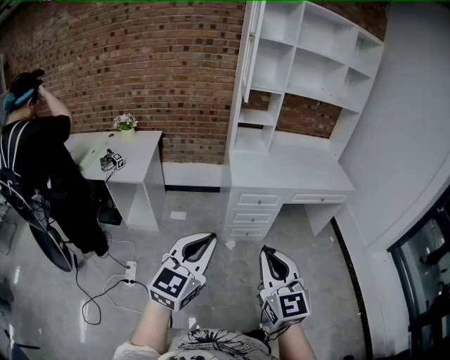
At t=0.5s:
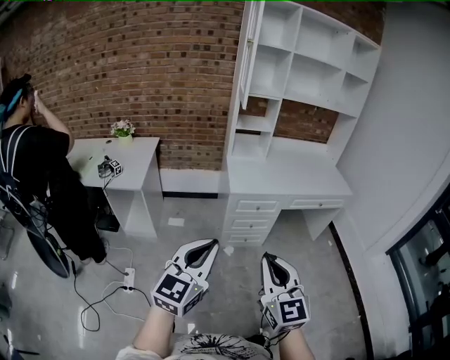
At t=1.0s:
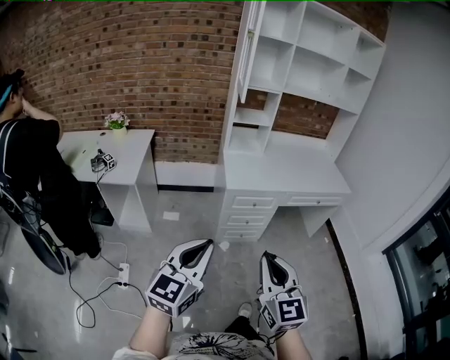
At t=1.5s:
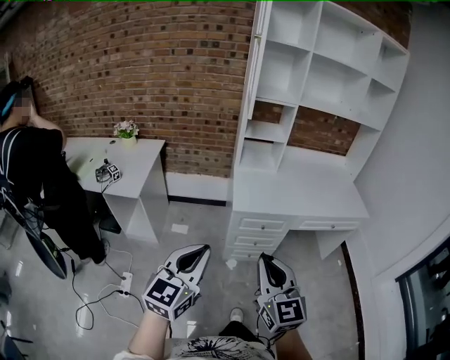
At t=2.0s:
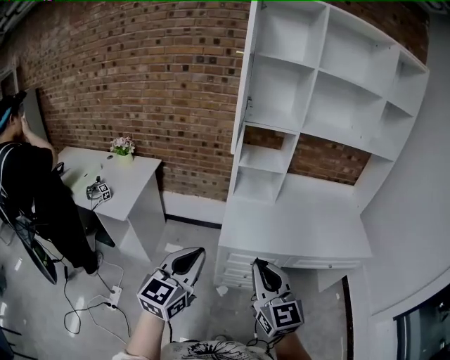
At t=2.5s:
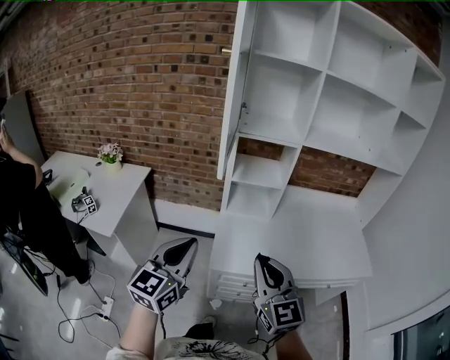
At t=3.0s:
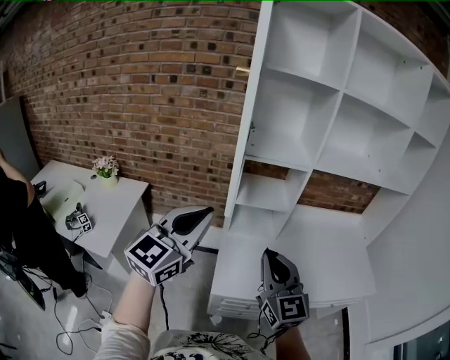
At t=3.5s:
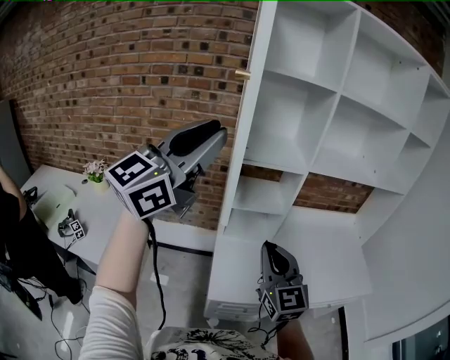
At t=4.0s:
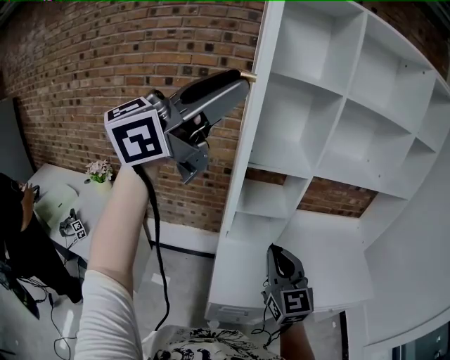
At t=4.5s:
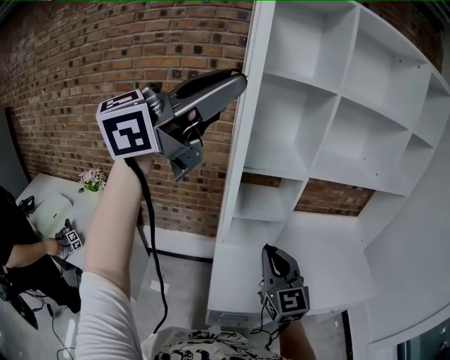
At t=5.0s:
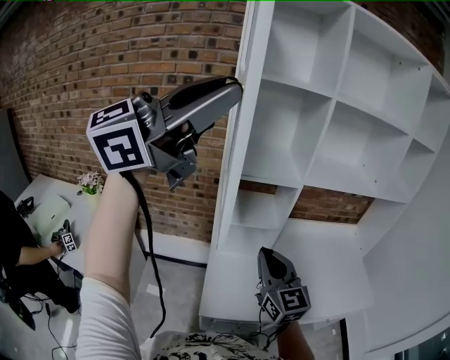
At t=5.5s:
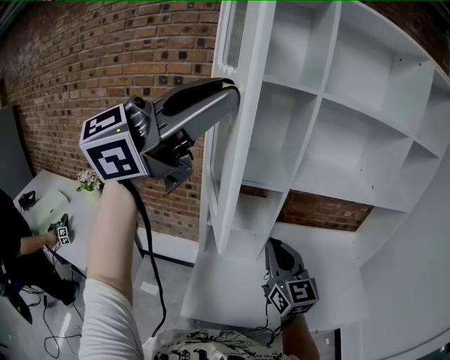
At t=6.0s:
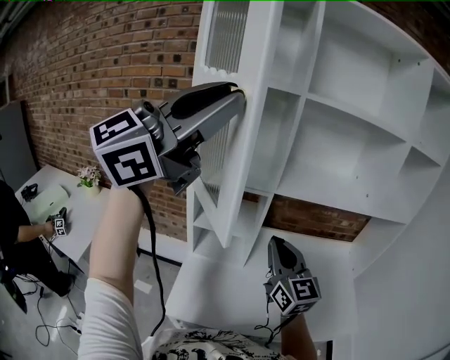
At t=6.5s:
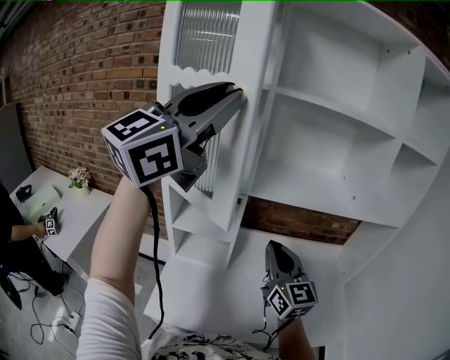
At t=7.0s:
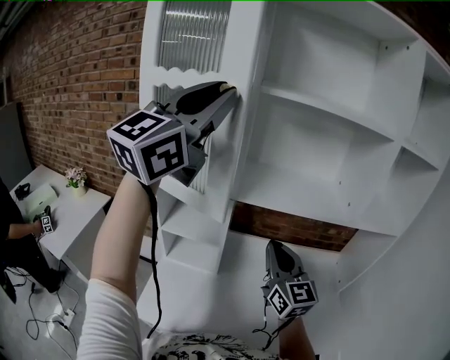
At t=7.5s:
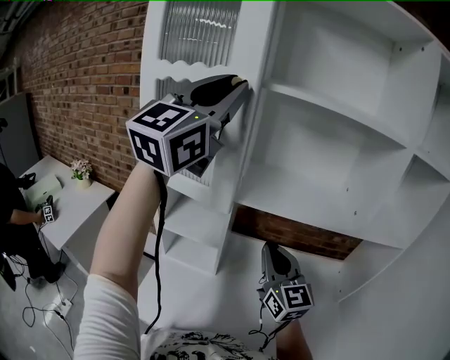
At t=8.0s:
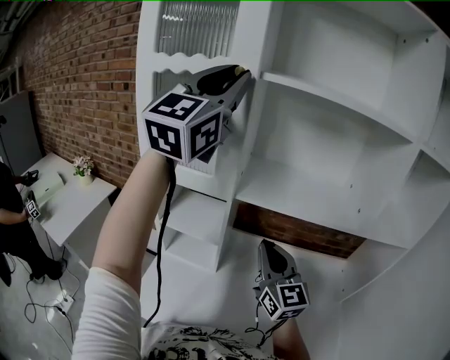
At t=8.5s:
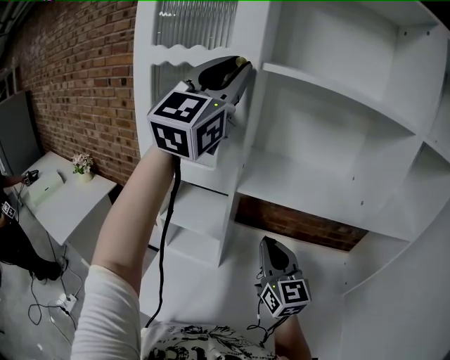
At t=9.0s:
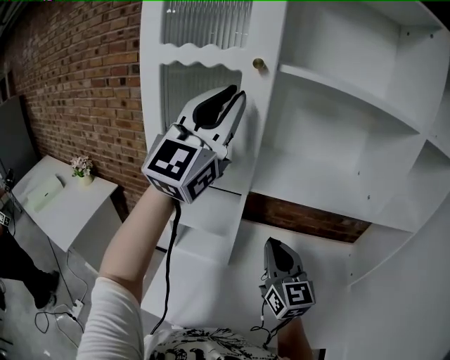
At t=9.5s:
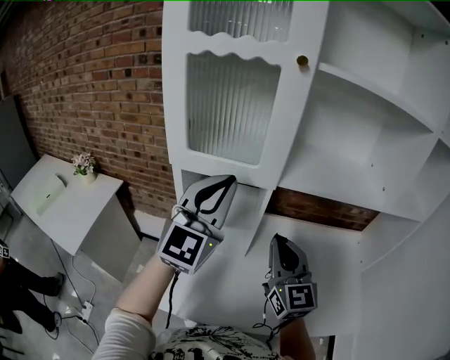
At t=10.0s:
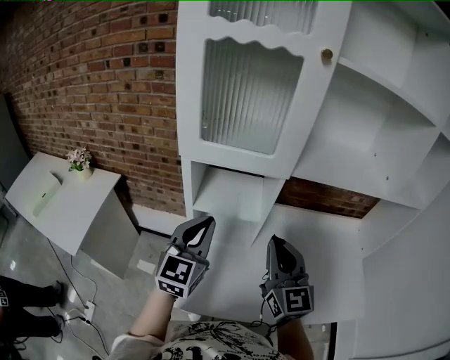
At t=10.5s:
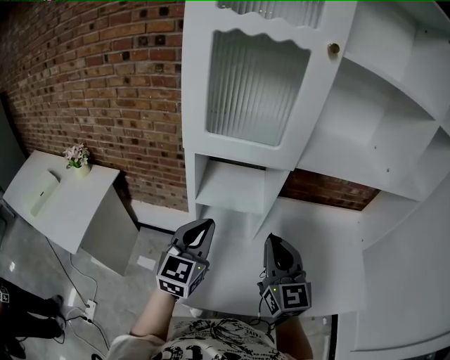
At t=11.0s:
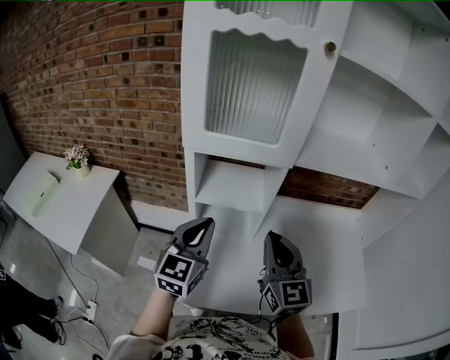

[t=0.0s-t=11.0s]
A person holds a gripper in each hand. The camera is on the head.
t=0.0s to t=2.0s: The grippers both shift forward by about 35 cm.
t=2.0s to t=3.5s: The right gripper is displaced forward by roughly 30 cm. Meanwhile the left gripper goes roughly 50 cm forward and upward, and swivels approximately 30 degrees.
t=3.5s to t=5.5s: The right gripper heads forward and to the right, covering some 15 cm. The left gripper shifts some 15 cm to the right, upward and forward, and rotates roughly 20 degrees.
t=5.5s to t=7.5s: The right gripper shifts by approximately 20 cm. The left gripper ends up roughly 25 cm from where it was, and changes its angle by about 40 degrees.
t=7.5s to t=9.0s: The left gripper goes approximately 5 cm downward.
t=9.0s to t=11.0s: The left gripper travels downward by some 35 cm, and angles its fingers downward, by approximately 40 degrees, while the right gripper moves to the left and backward, approximately 15 cm.

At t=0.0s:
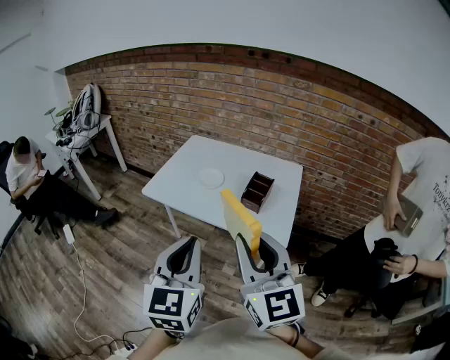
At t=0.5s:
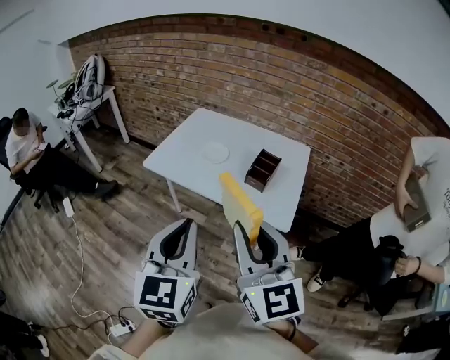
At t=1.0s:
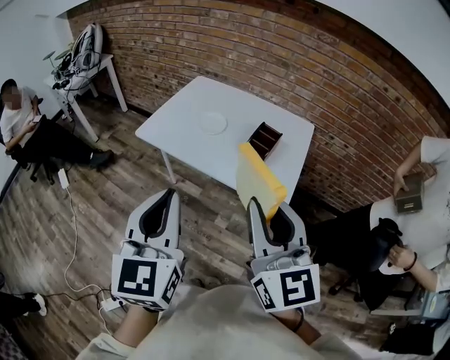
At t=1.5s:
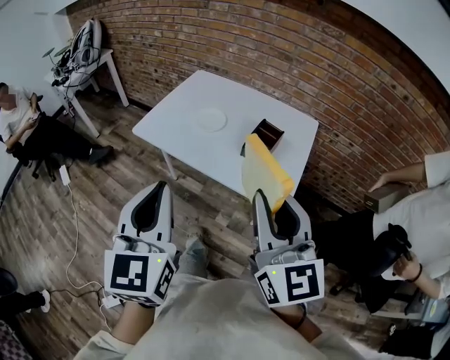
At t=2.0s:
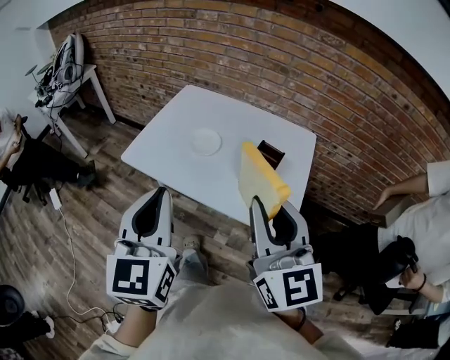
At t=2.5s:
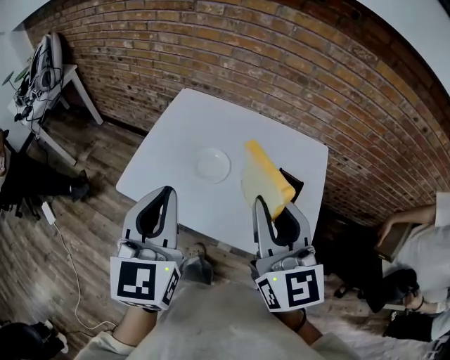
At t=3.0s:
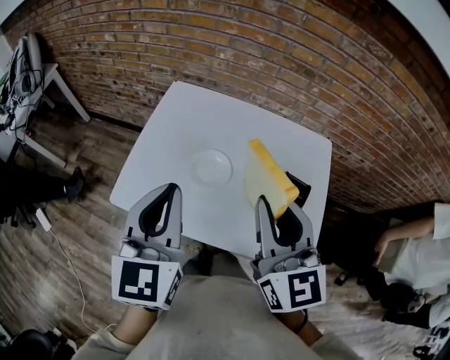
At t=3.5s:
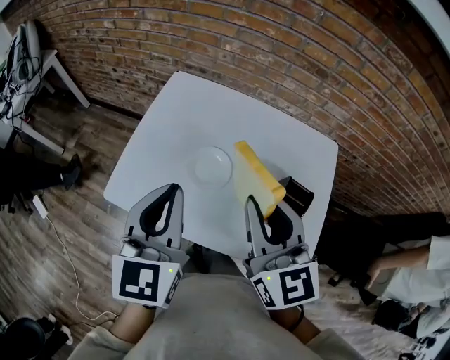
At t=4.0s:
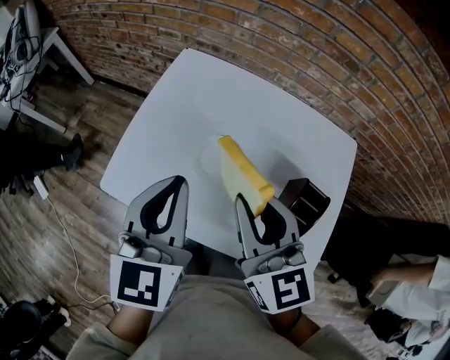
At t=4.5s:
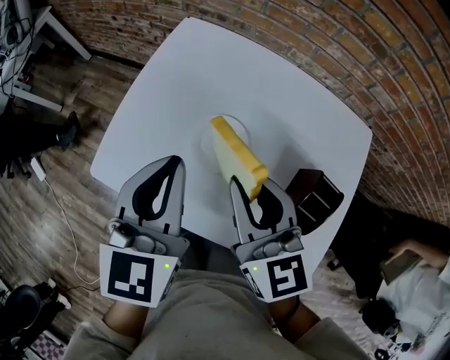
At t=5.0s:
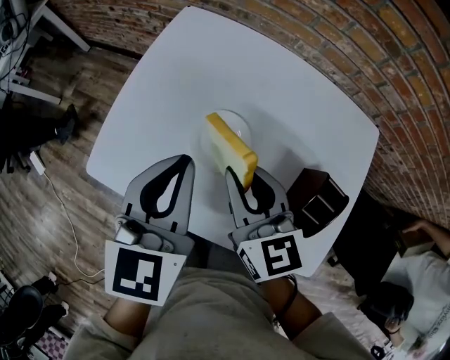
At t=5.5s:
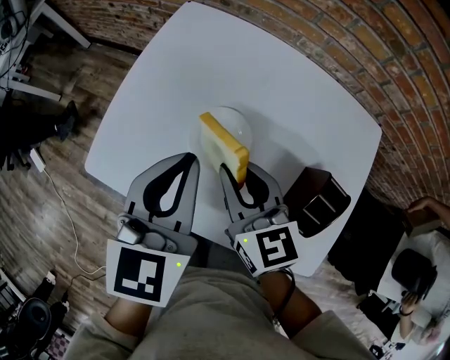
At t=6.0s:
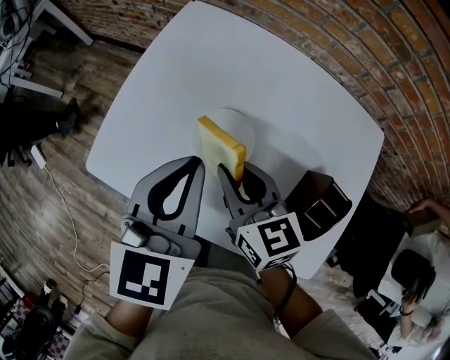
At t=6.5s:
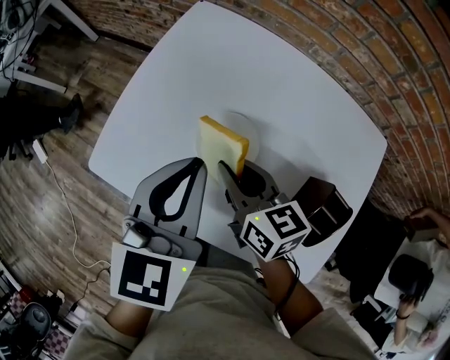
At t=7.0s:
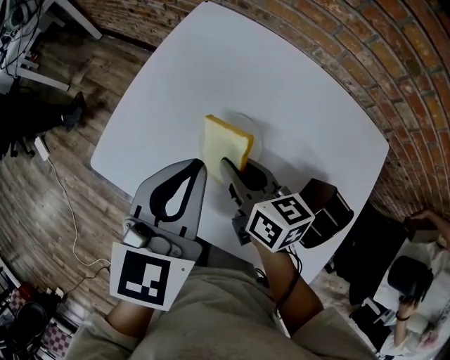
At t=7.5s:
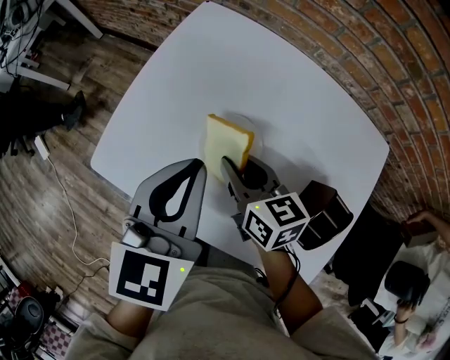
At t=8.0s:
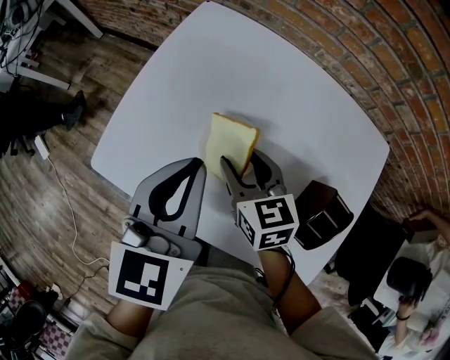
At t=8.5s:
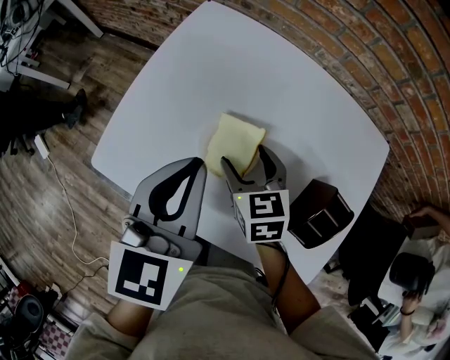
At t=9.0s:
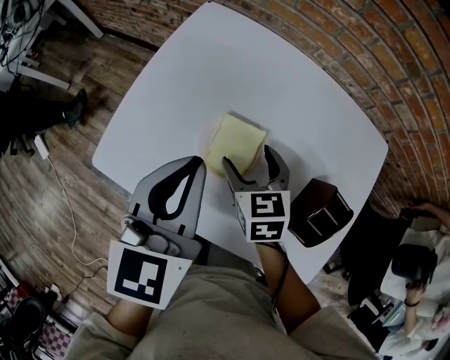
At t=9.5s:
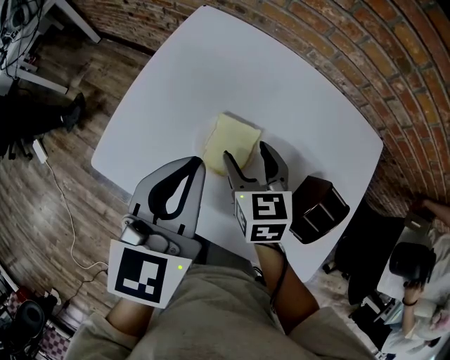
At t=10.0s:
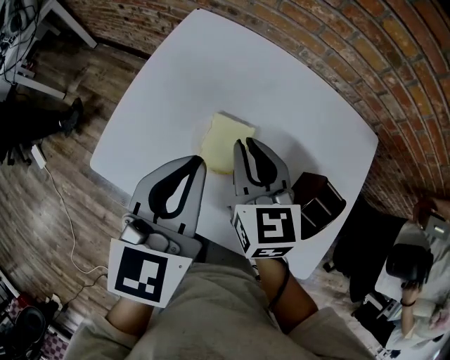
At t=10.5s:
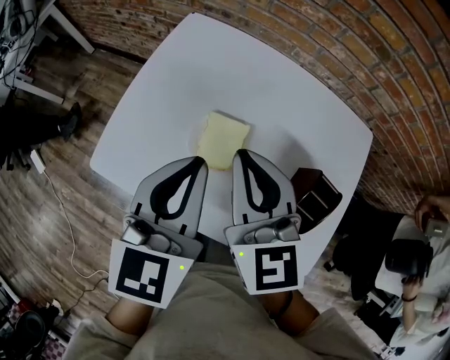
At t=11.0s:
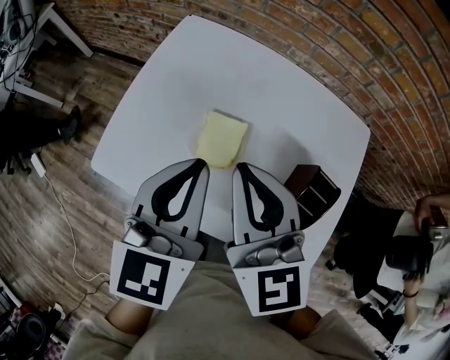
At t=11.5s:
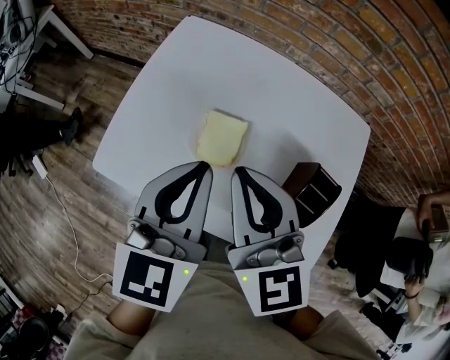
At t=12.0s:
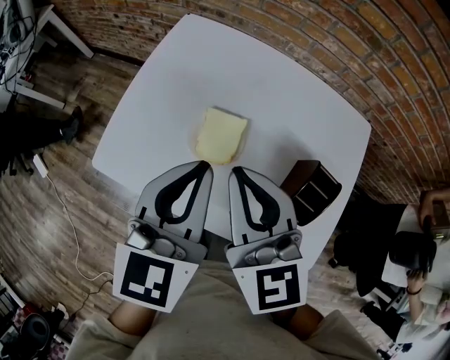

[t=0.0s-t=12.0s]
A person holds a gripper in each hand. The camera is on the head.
t=0.0s to t=2.0s: Both grippers travel together forward, roughly 15 cm.
t=2.0s to t=4.0s: Both grippers travel together forward, approximately 30 cm.
t=4.0s to t=6.0s: The right gripper moves downward, about 15 cm, and swivels approximately 20 degrees, while the left gripper moves downward, approximately 5 cm.
t=6.0s to t=8.0s: The right gripper changes place by roughly 5 cm.
t=8.0s to t=10.0s: The right gripper shifts some 10 cm upward, and opens and closes again.
t=10.0s to t=12.0s: The right gripper travels upward and backward by roughly 15 cm.

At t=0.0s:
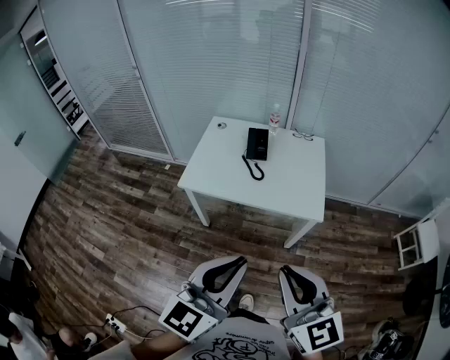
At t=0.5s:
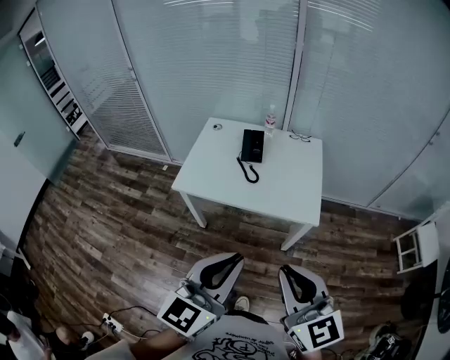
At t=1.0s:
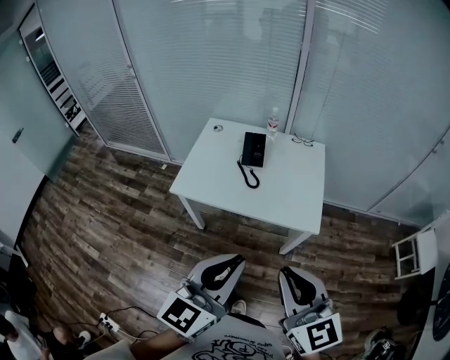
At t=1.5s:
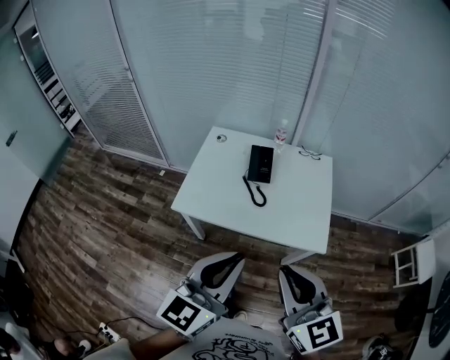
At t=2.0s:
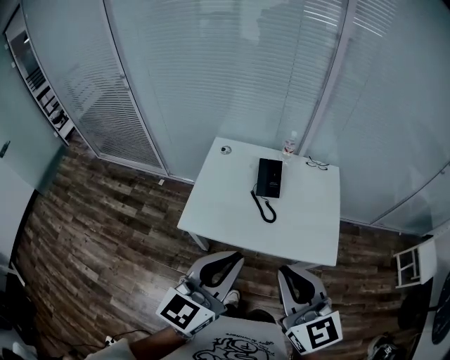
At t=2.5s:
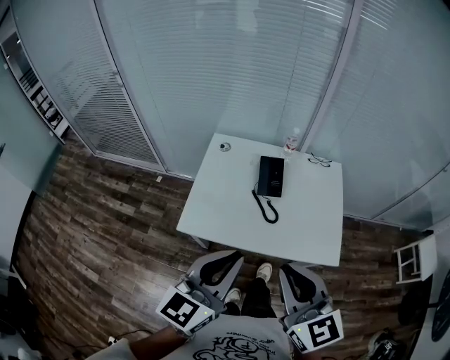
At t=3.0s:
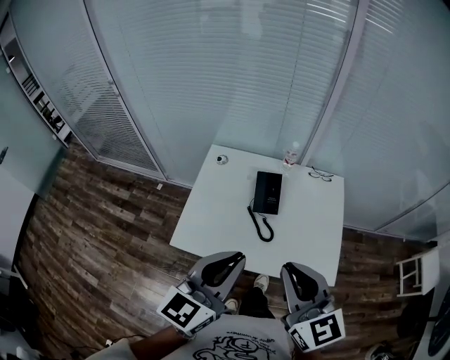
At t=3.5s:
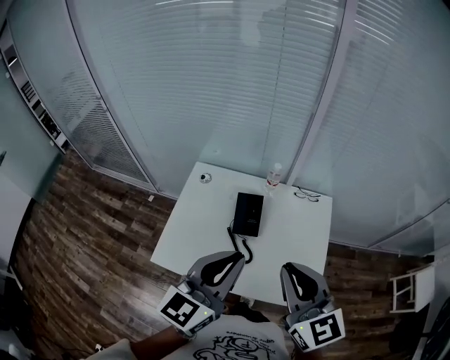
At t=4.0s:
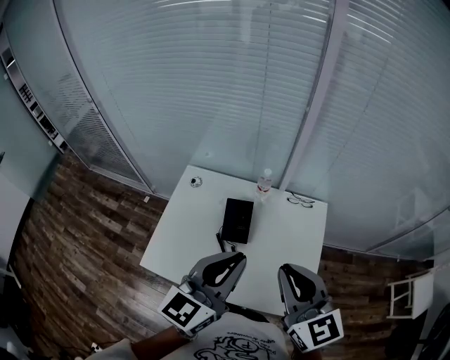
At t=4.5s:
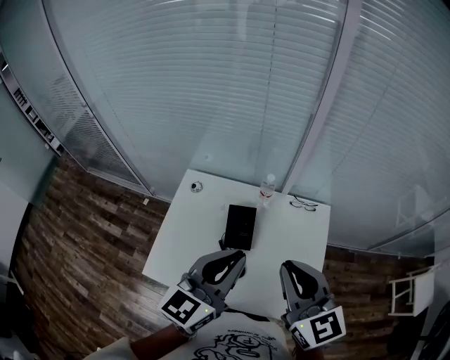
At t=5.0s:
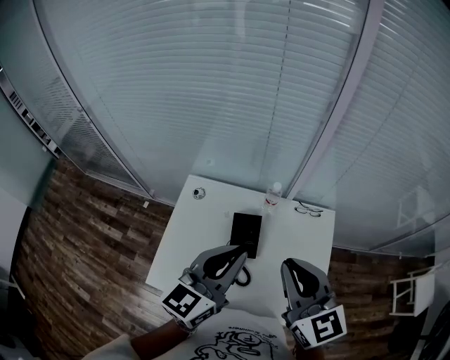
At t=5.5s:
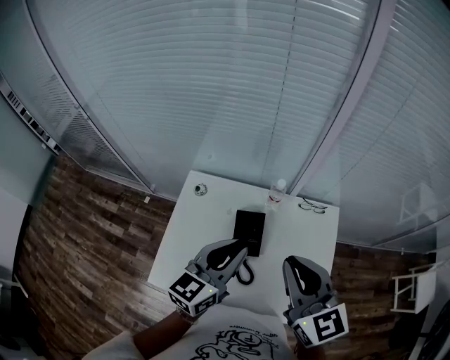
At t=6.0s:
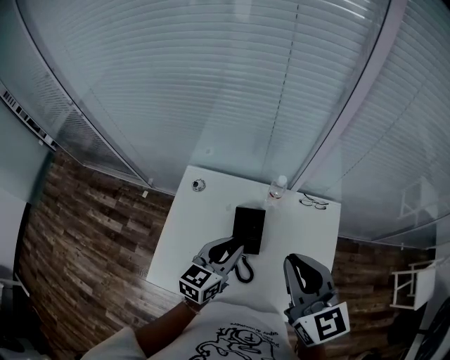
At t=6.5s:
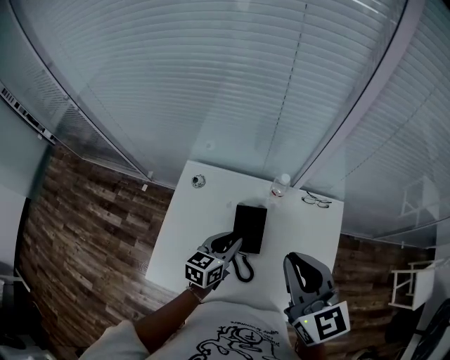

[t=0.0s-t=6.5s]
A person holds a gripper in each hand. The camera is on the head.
t=0.0s to t=2.0s: Both grippers move forward and to the left, approximately 25 cm.
t=2.0s to t=4.5s: Both grippers move forward and to the right, about 30 cm.
t=4.5s to t=6.5s: The left gripper is displaced downward and forward by approximately 25 cm, and swivels some 30 degrees. The right gripper moves forward, roughly 10 cm.
